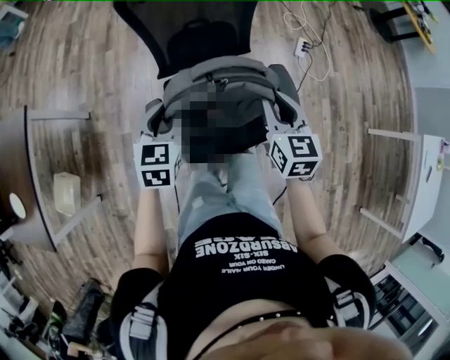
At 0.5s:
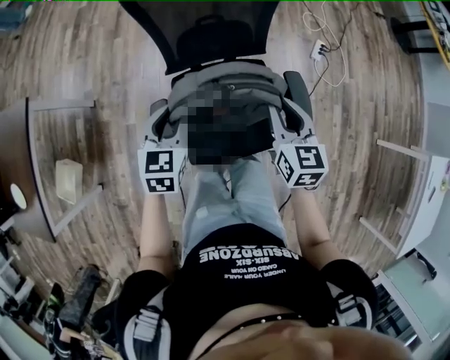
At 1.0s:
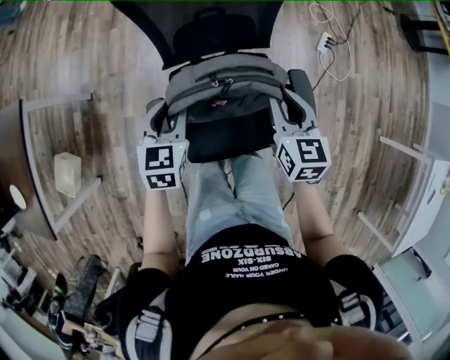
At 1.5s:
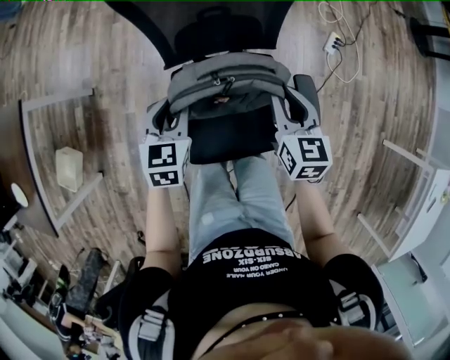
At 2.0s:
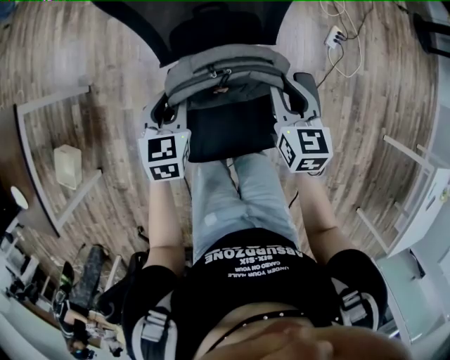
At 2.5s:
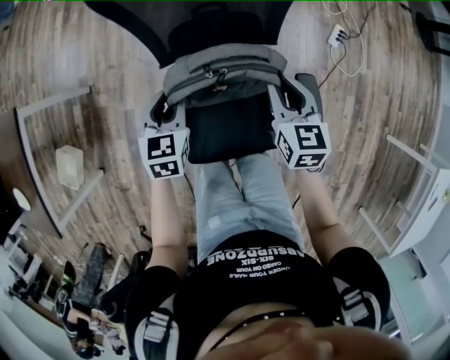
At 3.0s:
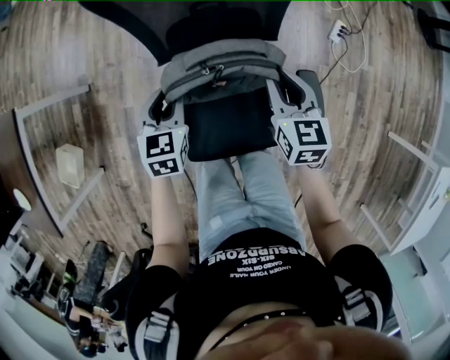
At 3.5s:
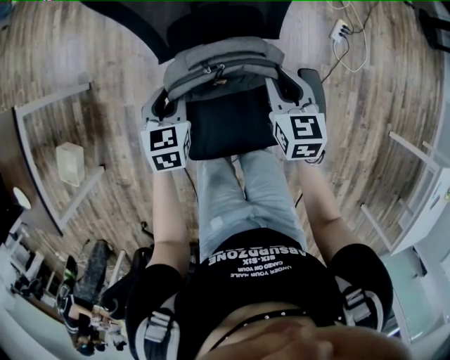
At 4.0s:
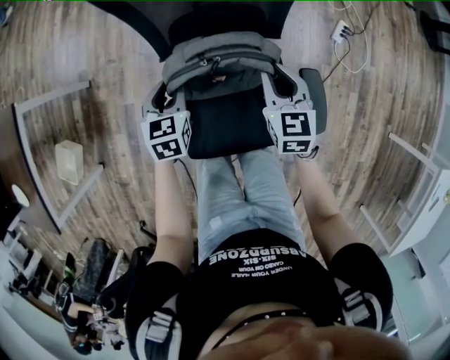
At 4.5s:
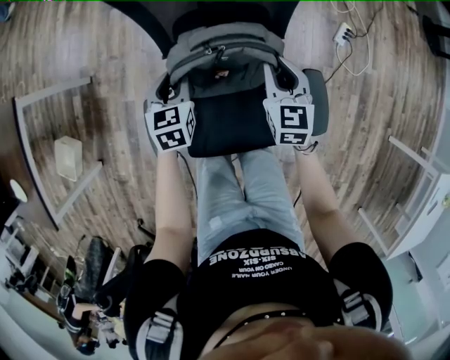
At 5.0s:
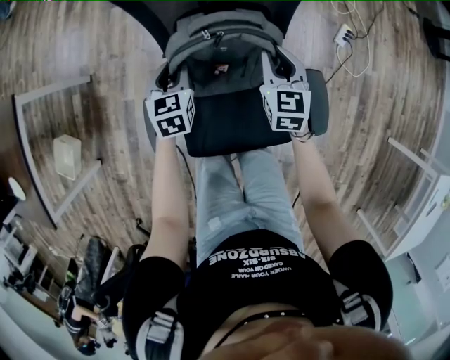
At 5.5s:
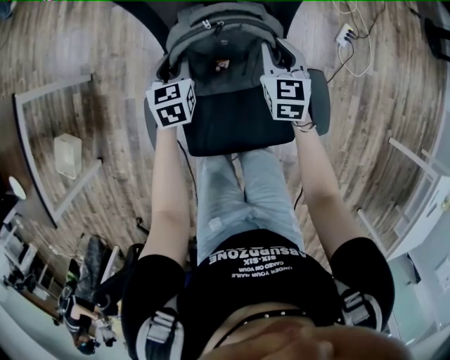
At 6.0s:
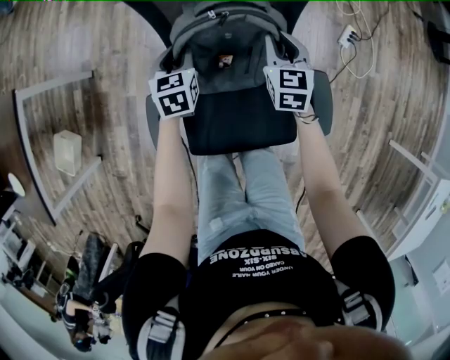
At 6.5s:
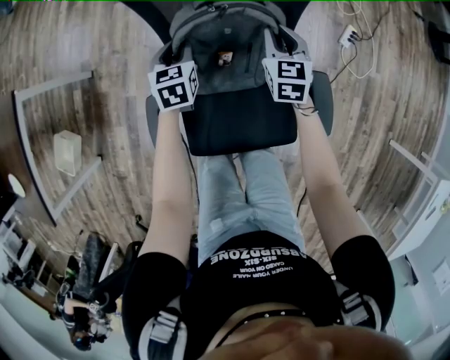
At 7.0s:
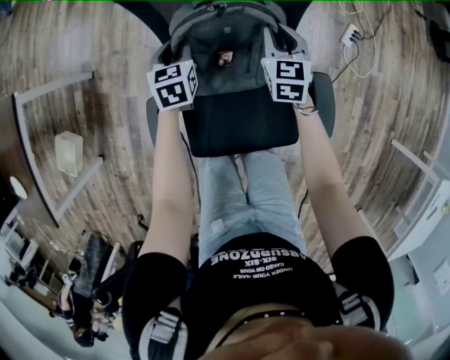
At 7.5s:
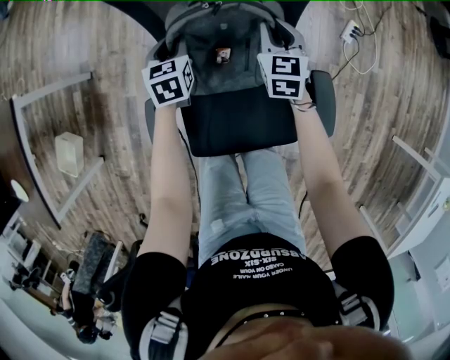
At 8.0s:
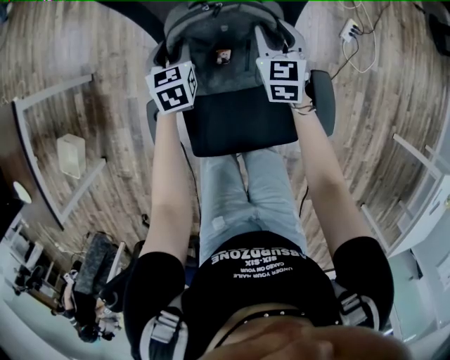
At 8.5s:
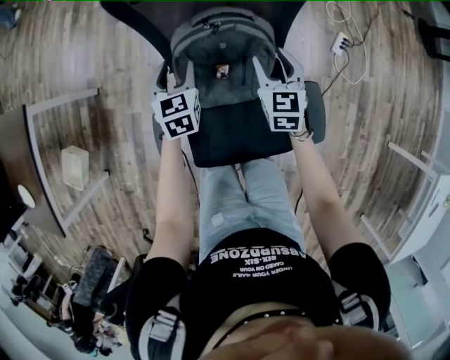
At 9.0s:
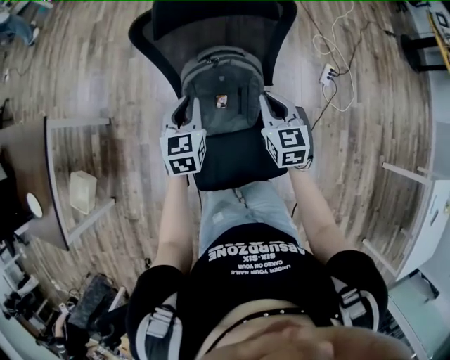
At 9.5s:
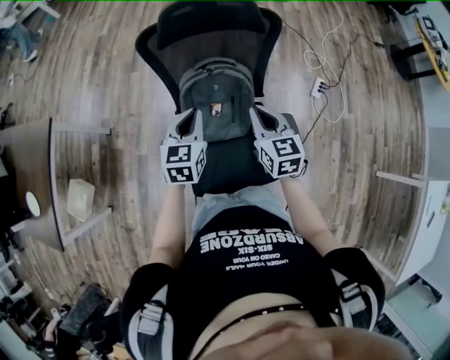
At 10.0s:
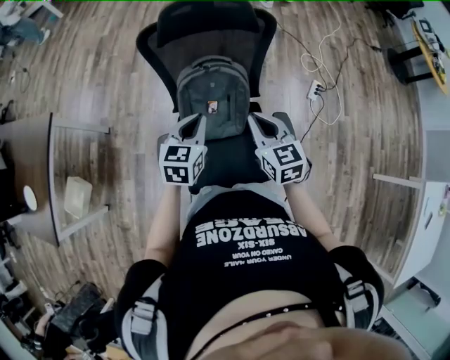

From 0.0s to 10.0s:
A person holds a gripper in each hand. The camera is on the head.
From 0.0s to 2.0s: The grippers both shift forward and downward by some 20 cm.
From 2.0s to 4.0s: The two grippers go roughly 5 cm downward.
From 4.0s to 6.0s: The two grippers go approximately 10 cm forward.
From 6.0s to 8.0s: The grippers make only small movements.
From 8.0s to 10.0s: Both grippers travel together upward and backward, roughly 30 cm. The right gripper closes up, while the left gripper rotates some 20 degrees, and closes its fingers.

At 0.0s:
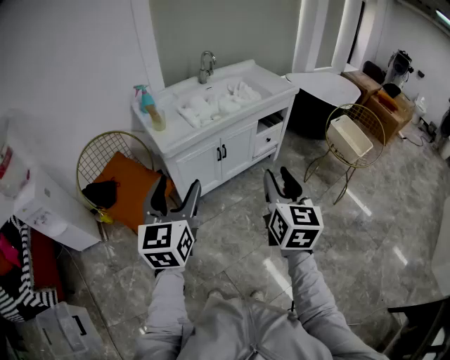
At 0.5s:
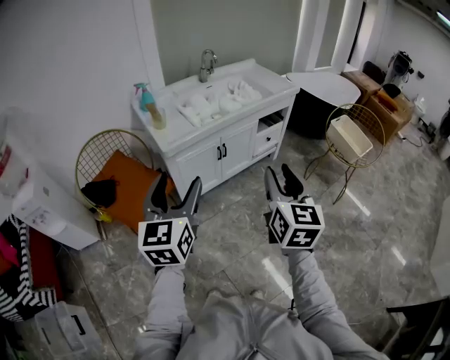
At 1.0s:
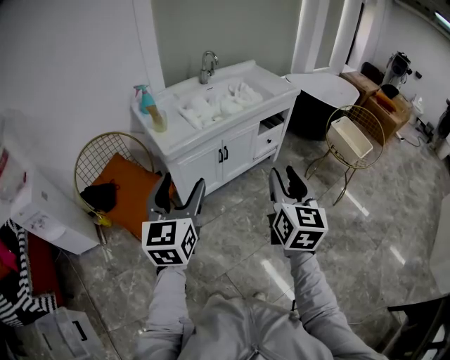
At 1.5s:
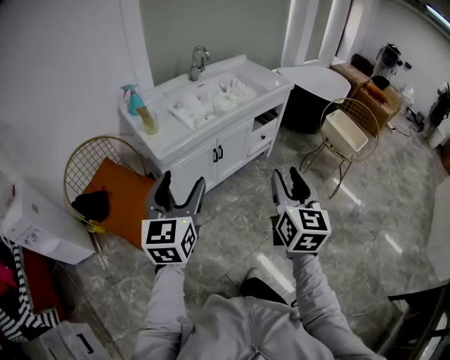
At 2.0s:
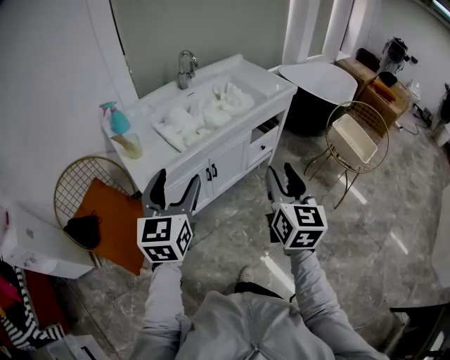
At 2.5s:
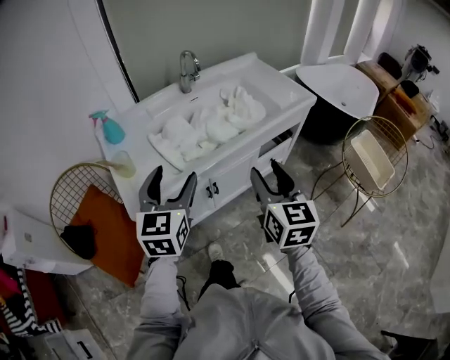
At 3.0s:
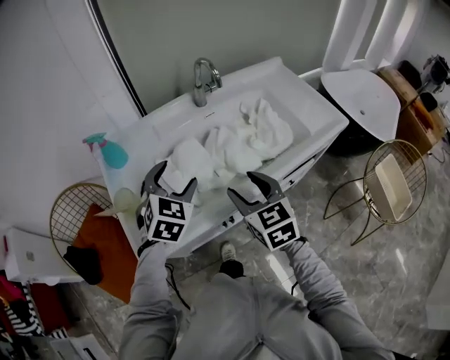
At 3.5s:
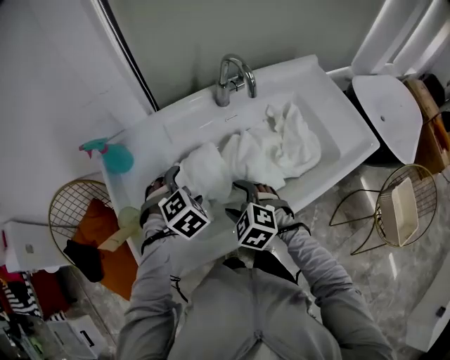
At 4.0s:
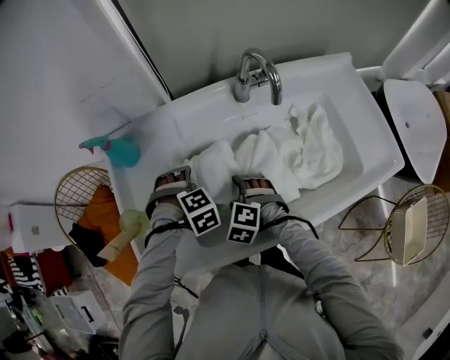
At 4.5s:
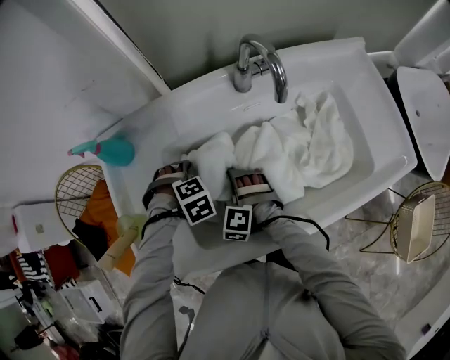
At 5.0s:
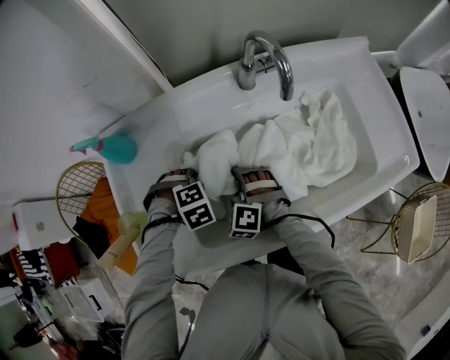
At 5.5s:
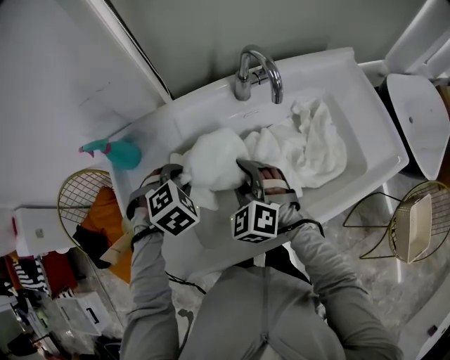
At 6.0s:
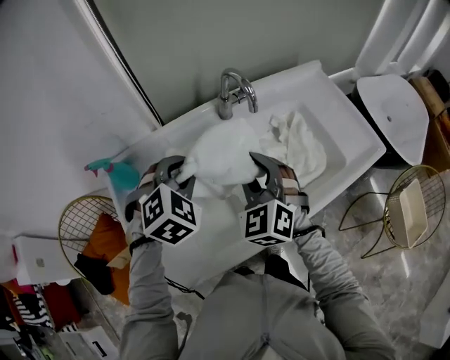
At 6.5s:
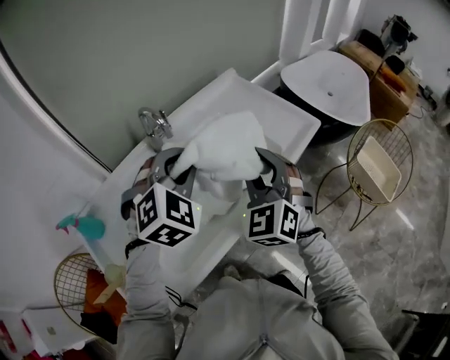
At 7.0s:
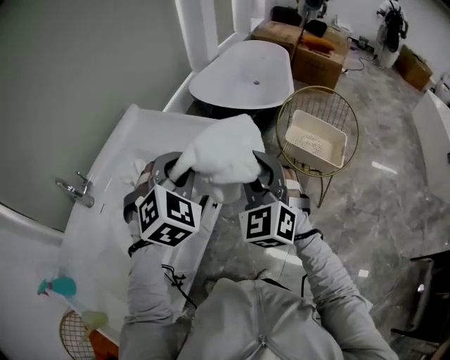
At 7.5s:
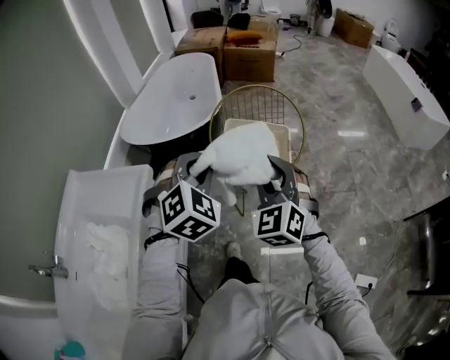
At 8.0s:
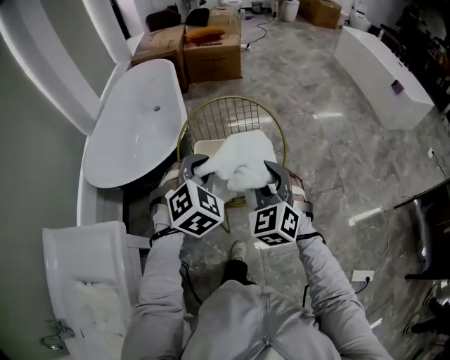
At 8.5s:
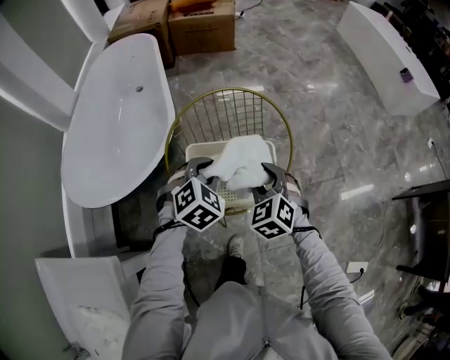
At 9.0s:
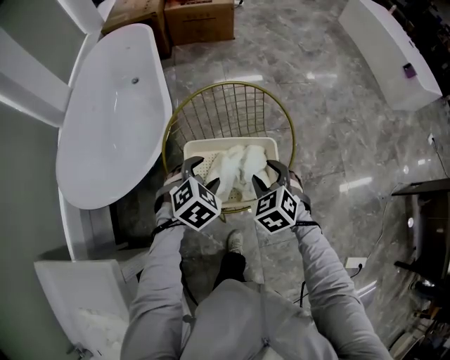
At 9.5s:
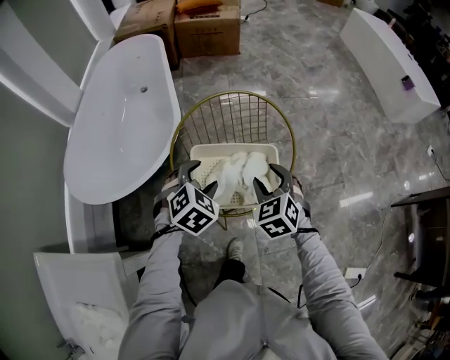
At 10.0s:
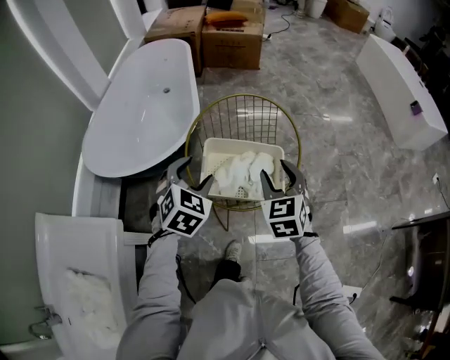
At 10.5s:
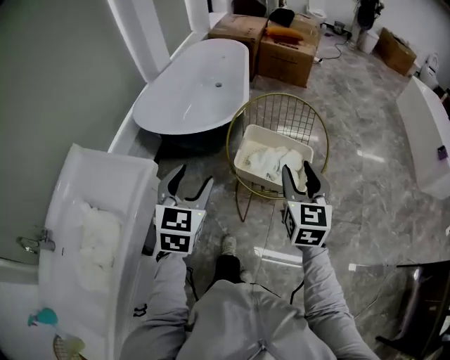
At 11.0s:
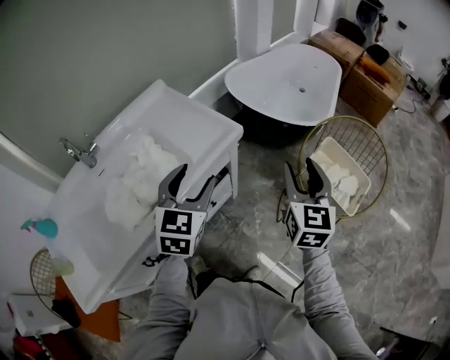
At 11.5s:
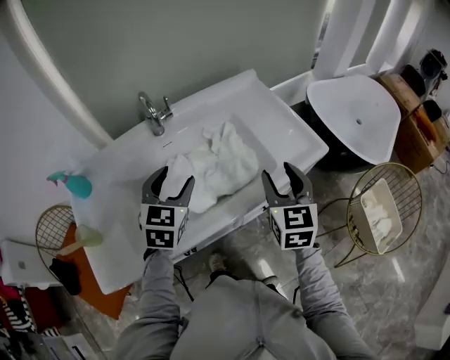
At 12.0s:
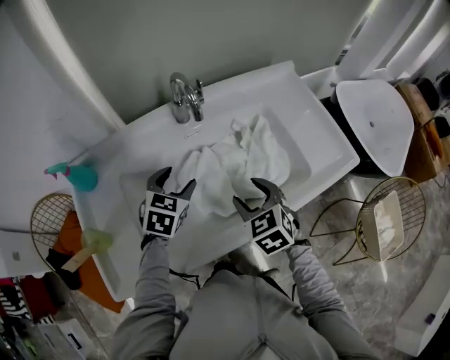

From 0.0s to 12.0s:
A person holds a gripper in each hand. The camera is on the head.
From 0.0s to 2.0s: Both grippers move forward, roughly 25 cm.
From 2.0s to 4.0s: The pair of grippers is taken approximately 50 cm. The right gripper tips its fingers downward by some 60 degrees, and opens up. The left gripper tilts its fingers roughly 70 degrees downward.
From 4.0s to 6.0s: The grippers both shift upward by approximately 20 cm. The left gripper points its fingers about 30 degrees further upward, and closes its fingers, while the right gripper tilts its fingers some 40 degrees upward, and closes up.
From 6.0s to 8.0s: The two grippers travel together, roughly 1 m. The left gripper rotates roughly 70 degrees, while the right gripper turns by some 80 degrees.
From 8.0s to 10.0s: The right gripper is displaced forward by roughly 10 cm, goes downward and returns, about 15 cm each way, and turns by roughly 20 degrees; the left gripper moves to the left and downward, about 10 cm, rotates about 20 degrees, and opens up.
From 10.0s to 12.0s: The two grippers travel together, some 90 cm. The left gripper changes its angle by approximately 80 degrees. The right gripper swivels approximately 80 degrees.

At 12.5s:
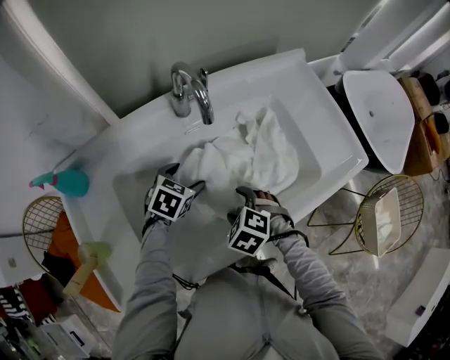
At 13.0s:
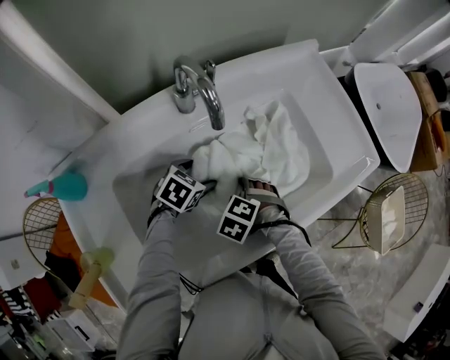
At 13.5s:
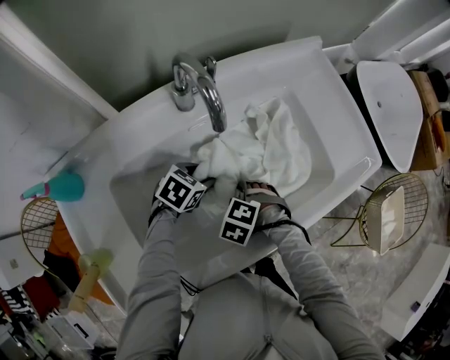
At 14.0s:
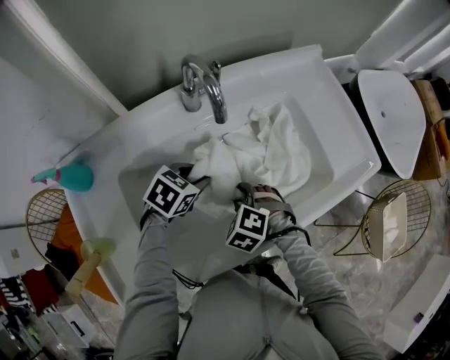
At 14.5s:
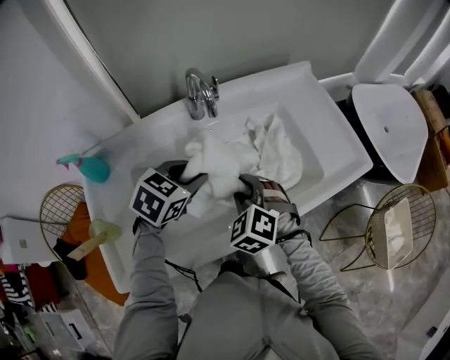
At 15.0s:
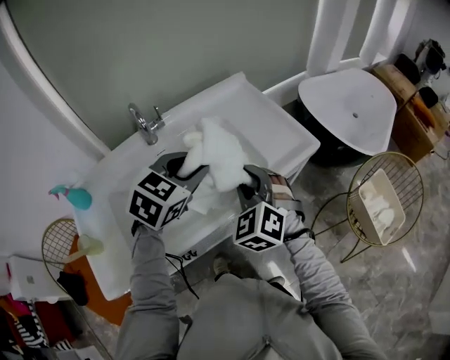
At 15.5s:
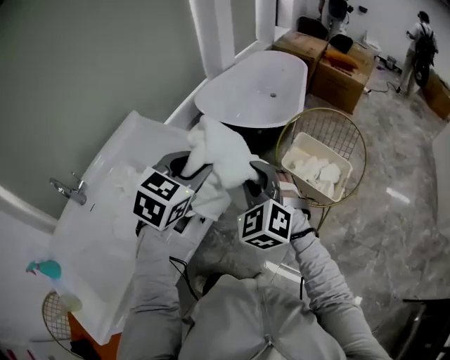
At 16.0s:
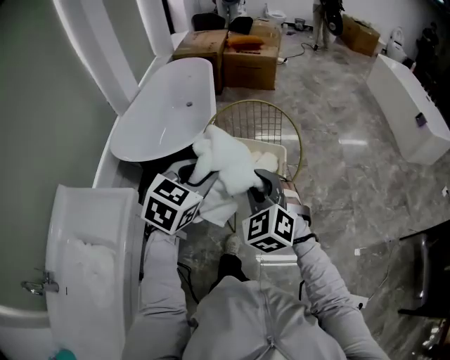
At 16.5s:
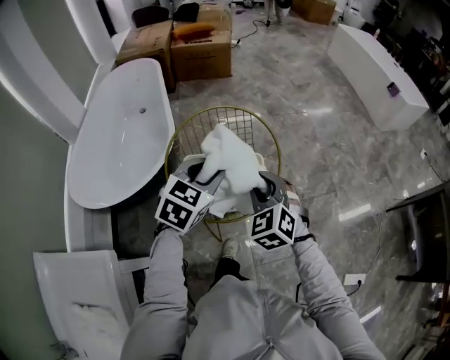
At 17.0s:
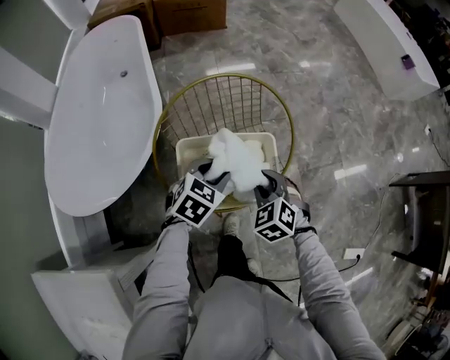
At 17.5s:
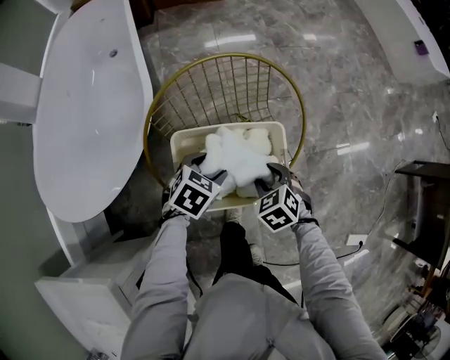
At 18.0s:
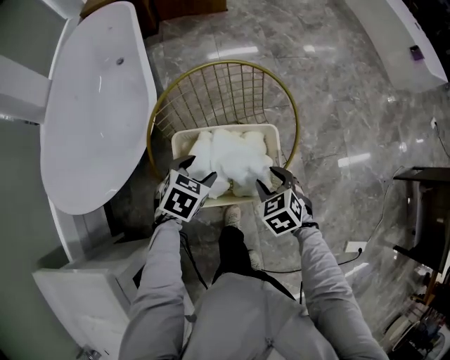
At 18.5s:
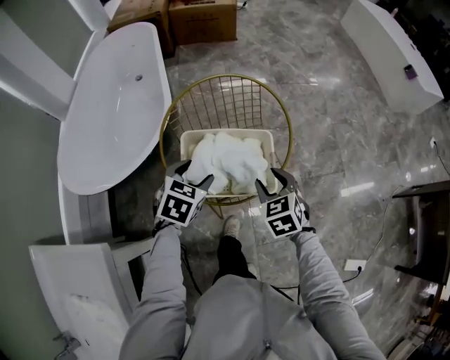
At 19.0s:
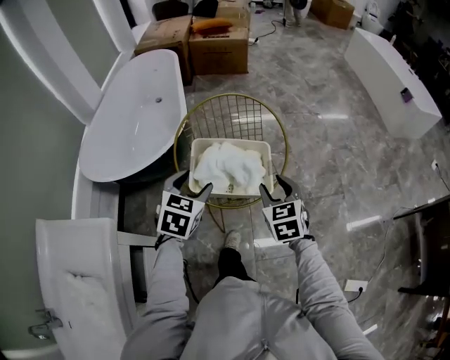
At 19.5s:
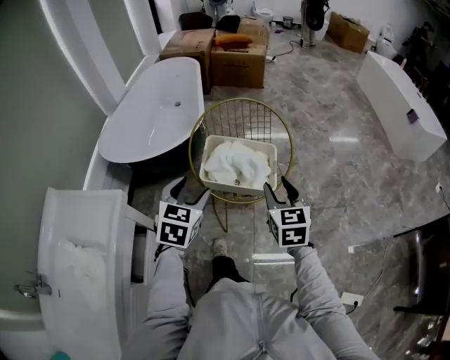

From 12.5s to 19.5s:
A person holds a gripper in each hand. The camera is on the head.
From 12.5s to 14.5s: The grippers both shift upward by approximately 15 cm. The left gripper closes its fingers. The right gripper changes its angle by roughly 30 degrees, and closes.
From 14.5s to 16.0s: Both grippers are carried some 80 cm. The left gripper changes its angle by roughly 60 degrees. Meanwhile the right gripper swivels some 70 degrees.
From 16.0s to 17.5s: Both grippers move downward and forward, roughly 40 cm. The left gripper turns by roughly 40 degrees; the right gripper angles its fingers downward, by some 40 degrees.
From 17.5s to 19.5s: The left gripper ends up about 35 cm from where it was, and swivels roughly 50 degrees. Meanwhile the right gripper is displaced upward by approximately 25 cm, and points its fingers approximately 40 degrees further upward.
